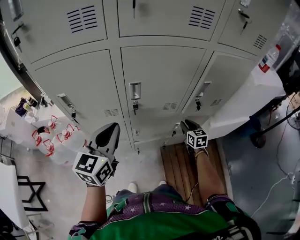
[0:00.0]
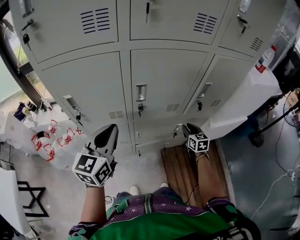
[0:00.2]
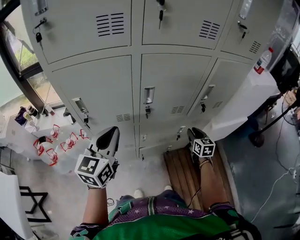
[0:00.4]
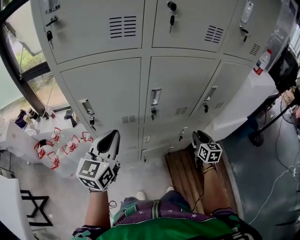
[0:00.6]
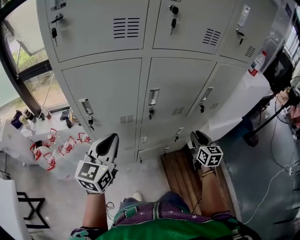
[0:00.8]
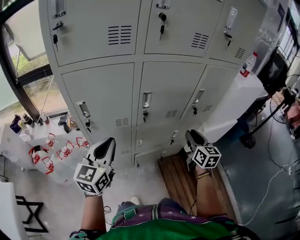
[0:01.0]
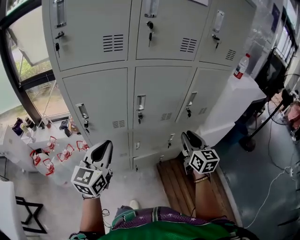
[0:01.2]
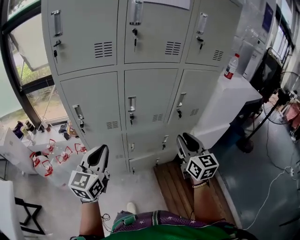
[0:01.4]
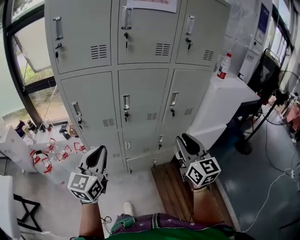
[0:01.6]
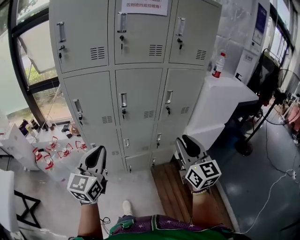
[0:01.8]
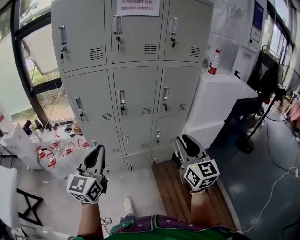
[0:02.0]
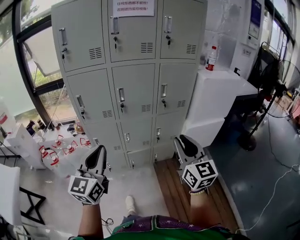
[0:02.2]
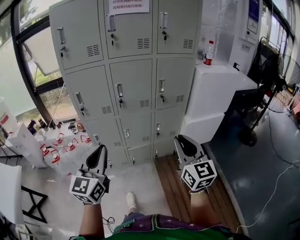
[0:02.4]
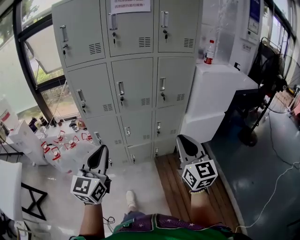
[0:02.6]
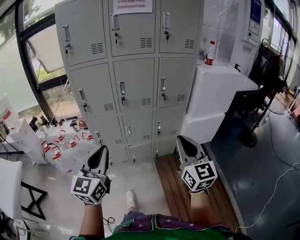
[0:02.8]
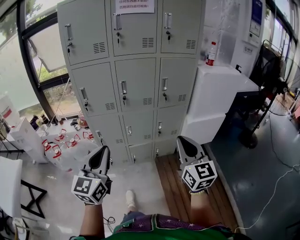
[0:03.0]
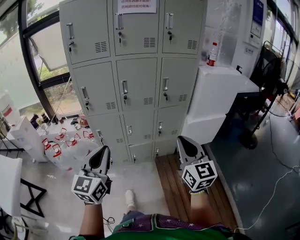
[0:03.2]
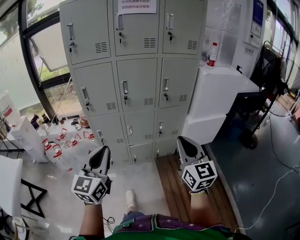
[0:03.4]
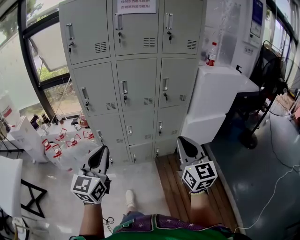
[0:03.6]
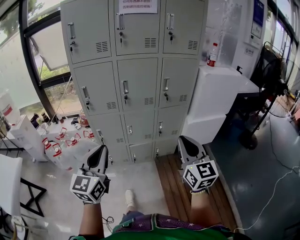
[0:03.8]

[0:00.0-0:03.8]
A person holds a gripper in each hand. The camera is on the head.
0:00.0 to 0:01.2: The right gripper moves upward and backward, approximately 30 cm, and rotates approximately 20 degrees. Meanwhile the left gripper moves backward and to the left, approximately 10 cm.
0:01.2 to 0:02.6: The right gripper is displaced backward by some 30 cm; the left gripper shifts some 35 cm backward and to the right.
0:02.6 to 0:03.8: The grippers stay close to where they were, moving slightly.

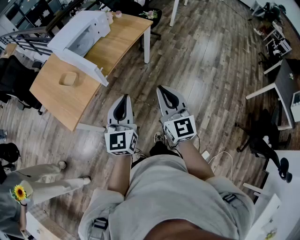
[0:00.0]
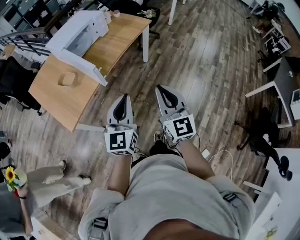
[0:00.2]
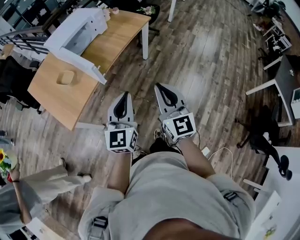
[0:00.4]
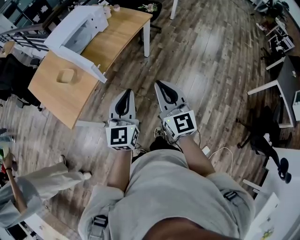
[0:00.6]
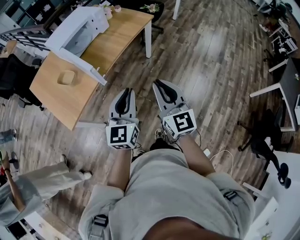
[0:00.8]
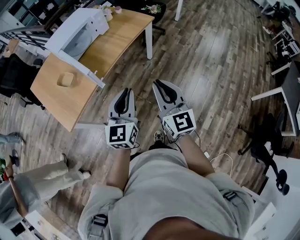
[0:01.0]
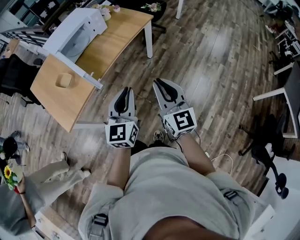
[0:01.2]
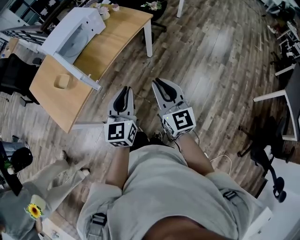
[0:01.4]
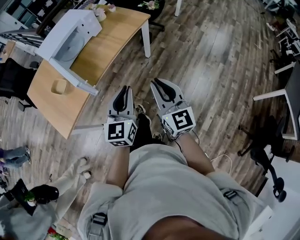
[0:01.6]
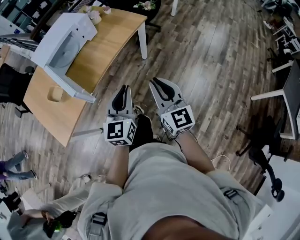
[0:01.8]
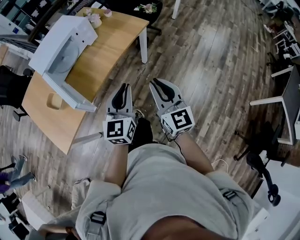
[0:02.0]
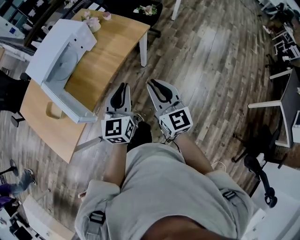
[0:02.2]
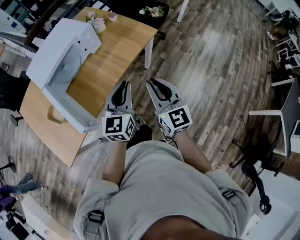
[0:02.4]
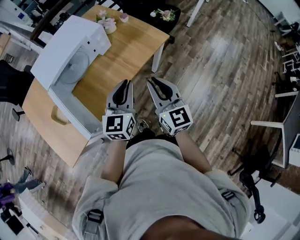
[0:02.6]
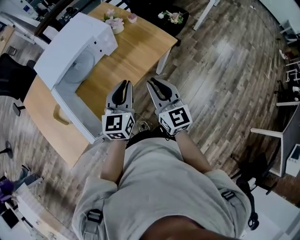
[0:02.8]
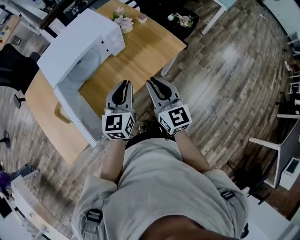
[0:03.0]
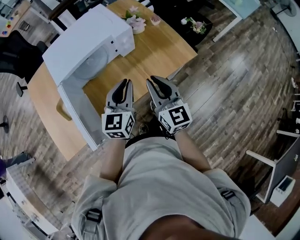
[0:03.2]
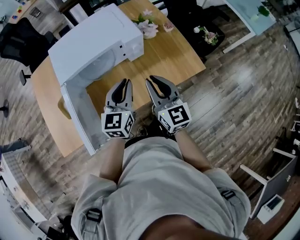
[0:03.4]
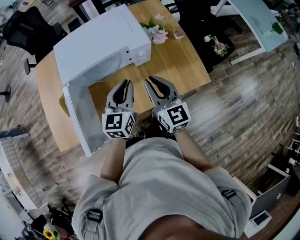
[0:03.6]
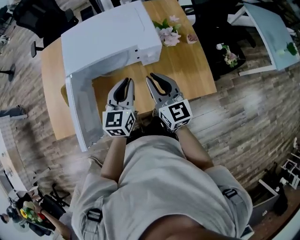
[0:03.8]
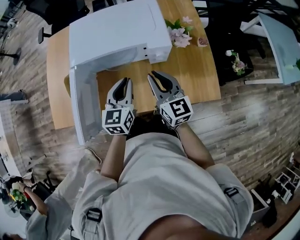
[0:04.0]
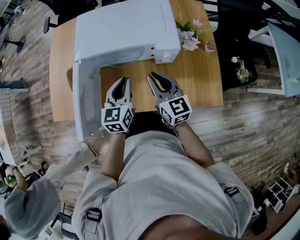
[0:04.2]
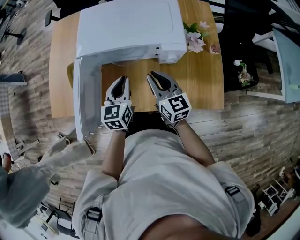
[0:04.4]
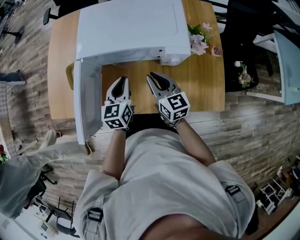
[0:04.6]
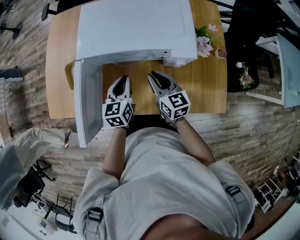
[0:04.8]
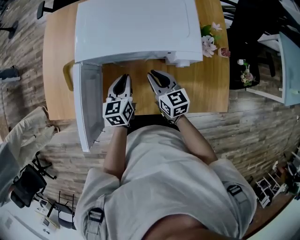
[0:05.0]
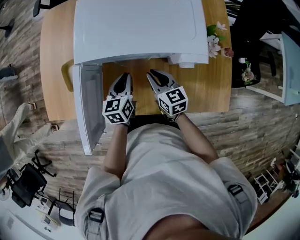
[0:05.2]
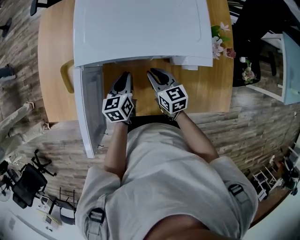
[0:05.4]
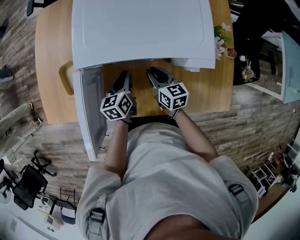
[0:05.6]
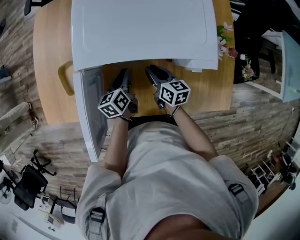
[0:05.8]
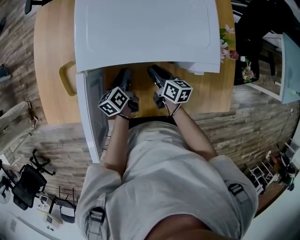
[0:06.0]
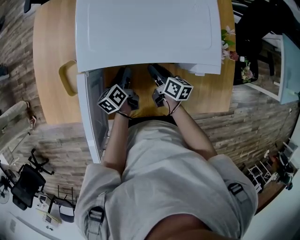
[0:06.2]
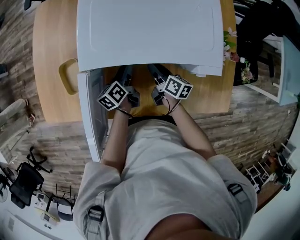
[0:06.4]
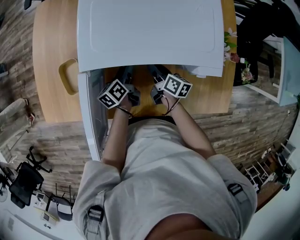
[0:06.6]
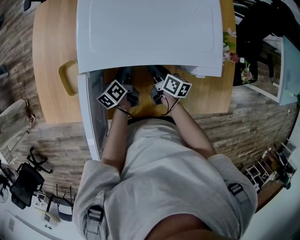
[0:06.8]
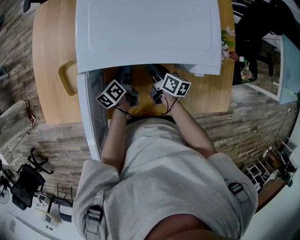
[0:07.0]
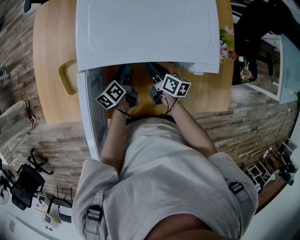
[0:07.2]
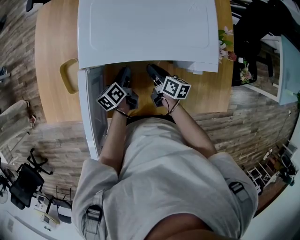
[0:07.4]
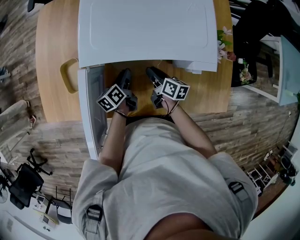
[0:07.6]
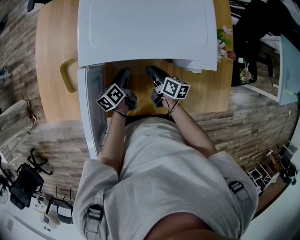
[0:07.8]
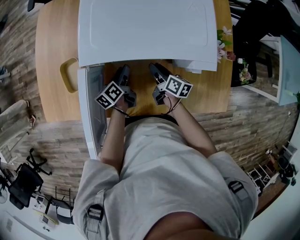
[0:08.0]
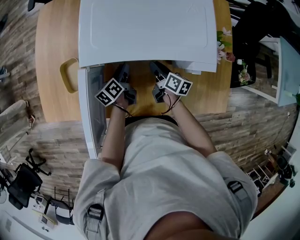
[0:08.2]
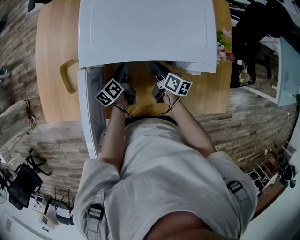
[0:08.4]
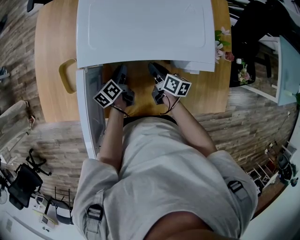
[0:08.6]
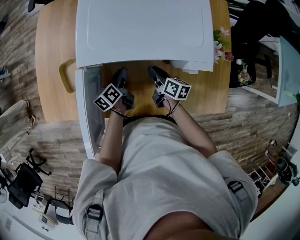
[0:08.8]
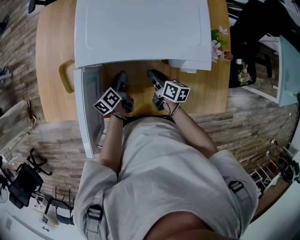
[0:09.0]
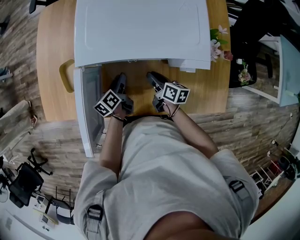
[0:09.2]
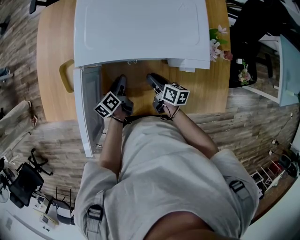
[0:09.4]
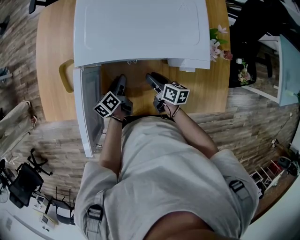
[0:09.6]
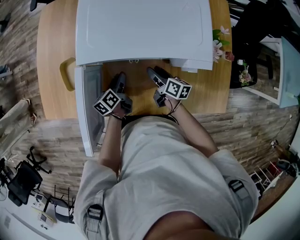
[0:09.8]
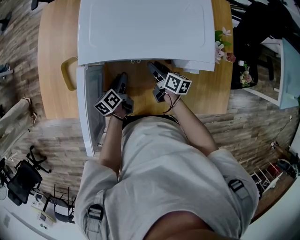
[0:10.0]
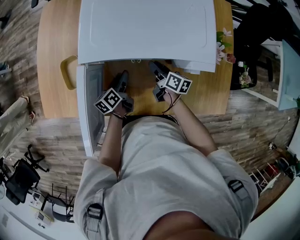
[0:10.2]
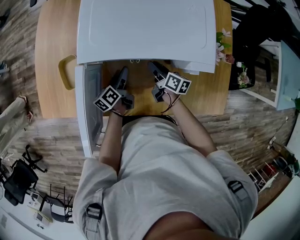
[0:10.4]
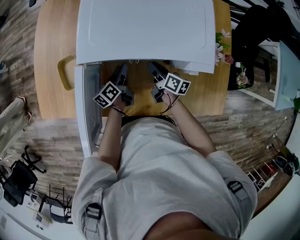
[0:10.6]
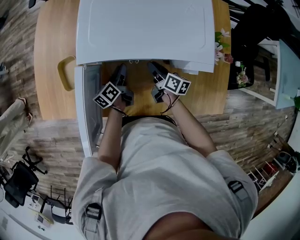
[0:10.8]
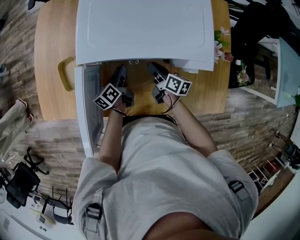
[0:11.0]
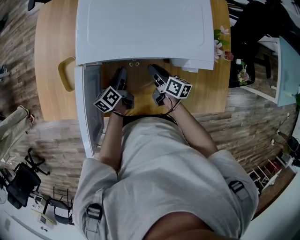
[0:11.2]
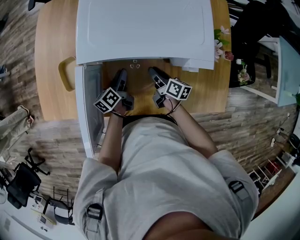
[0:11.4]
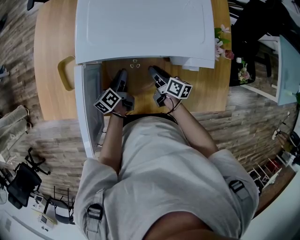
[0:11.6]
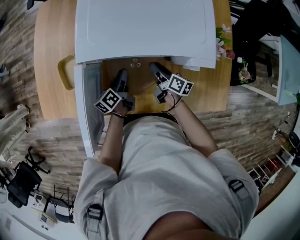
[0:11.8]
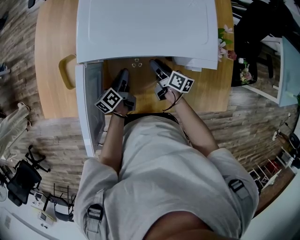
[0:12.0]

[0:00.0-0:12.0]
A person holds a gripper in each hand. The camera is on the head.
0:00.0 to 0:01.6: The two grippers go approximately 15 cm forward and to the right.
0:01.6 to 0:03.0: The grippers both shift forward by roughly 35 cm.
0:03.0 to 0:04.4: The right gripper shifts by roughly 25 cm, and swivels about 50 degrees. Meanwhile the left gripper ends up approximately 20 cm from where it was, and turns by roughly 50 degrees.
0:04.4 to 0:06.0: Both grippers travel together downward and forward, some 20 cm. The right gripper changes its angle by approximately 40 degrees. The left gripper changes its angle by roughly 40 degrees.
0:06.0 to 0:09.0: There are only small adjustments of the grippers.
0:09.0 to 0:10.4: The right gripper opens and closes again, while the left gripper opens.
0:10.4 to 0:12.0: The left gripper closes its fingers.

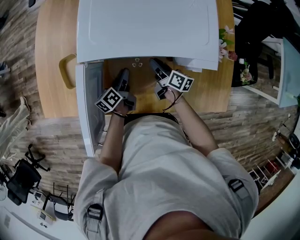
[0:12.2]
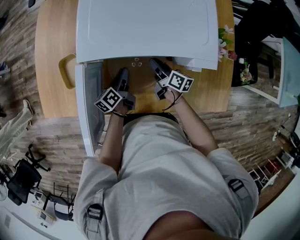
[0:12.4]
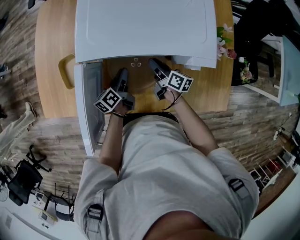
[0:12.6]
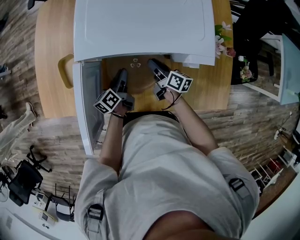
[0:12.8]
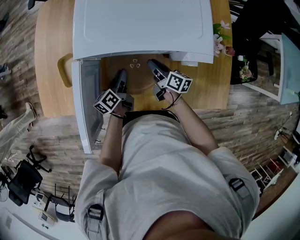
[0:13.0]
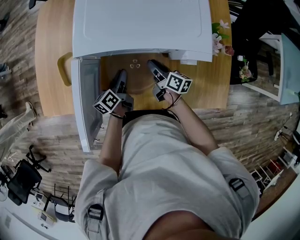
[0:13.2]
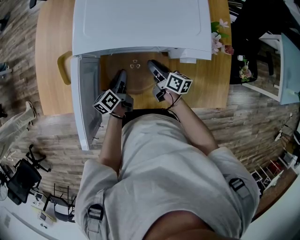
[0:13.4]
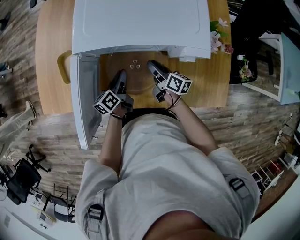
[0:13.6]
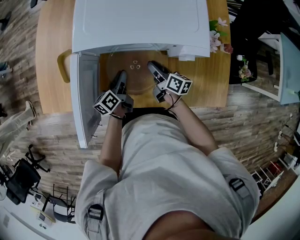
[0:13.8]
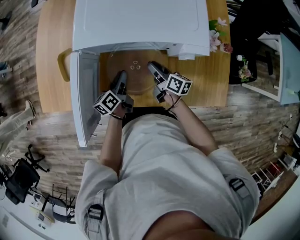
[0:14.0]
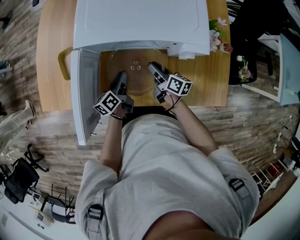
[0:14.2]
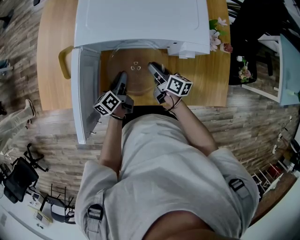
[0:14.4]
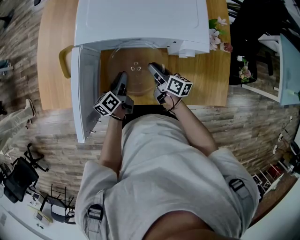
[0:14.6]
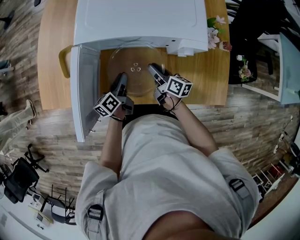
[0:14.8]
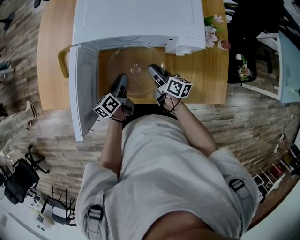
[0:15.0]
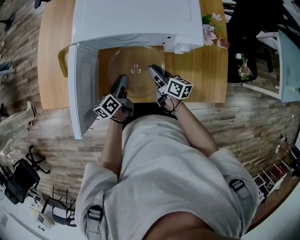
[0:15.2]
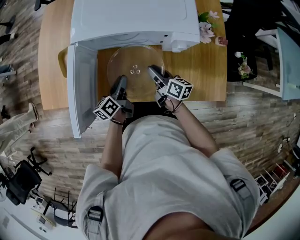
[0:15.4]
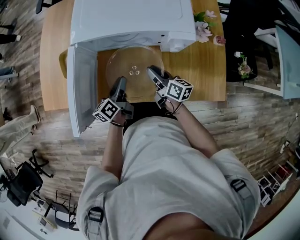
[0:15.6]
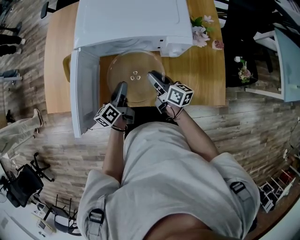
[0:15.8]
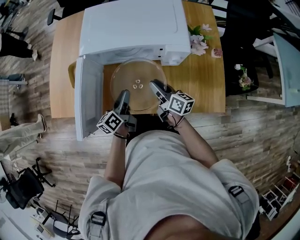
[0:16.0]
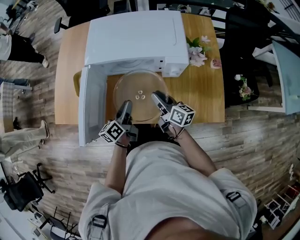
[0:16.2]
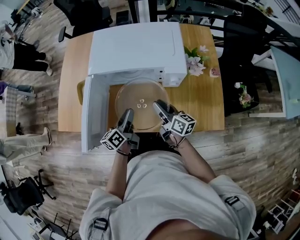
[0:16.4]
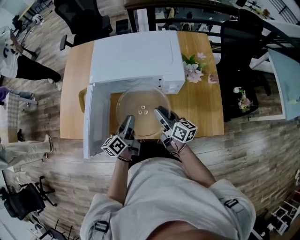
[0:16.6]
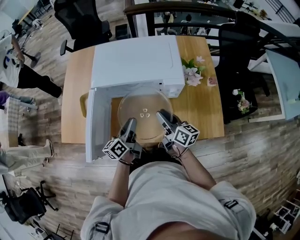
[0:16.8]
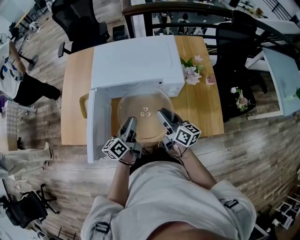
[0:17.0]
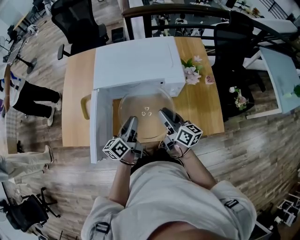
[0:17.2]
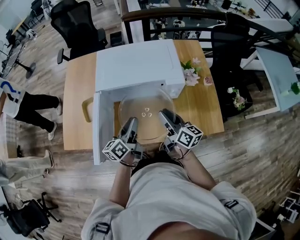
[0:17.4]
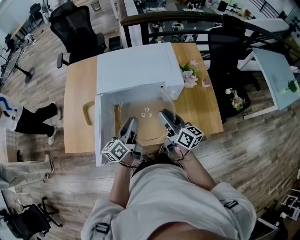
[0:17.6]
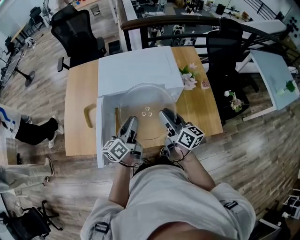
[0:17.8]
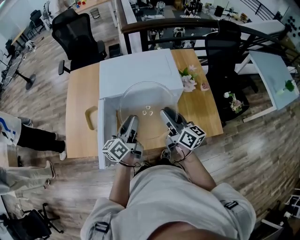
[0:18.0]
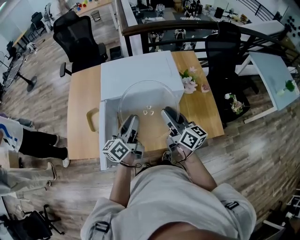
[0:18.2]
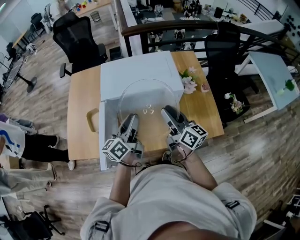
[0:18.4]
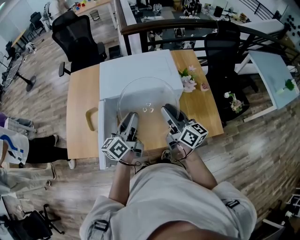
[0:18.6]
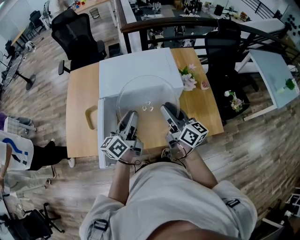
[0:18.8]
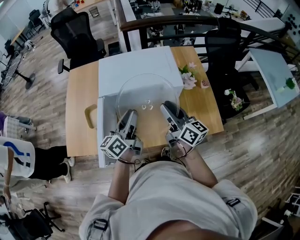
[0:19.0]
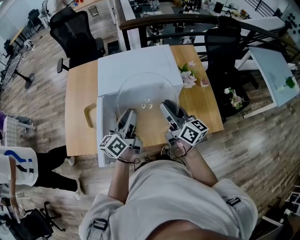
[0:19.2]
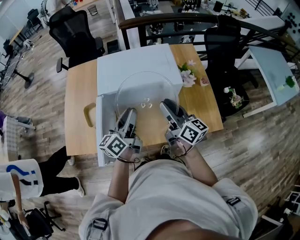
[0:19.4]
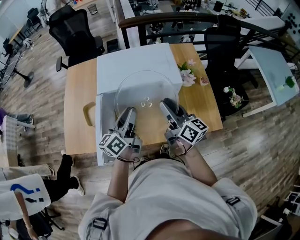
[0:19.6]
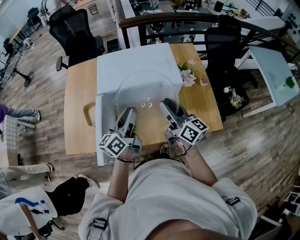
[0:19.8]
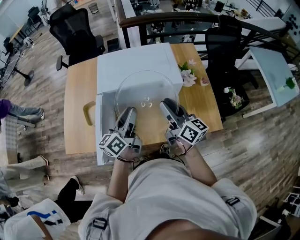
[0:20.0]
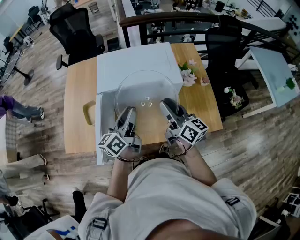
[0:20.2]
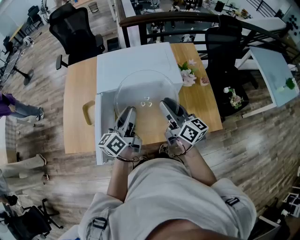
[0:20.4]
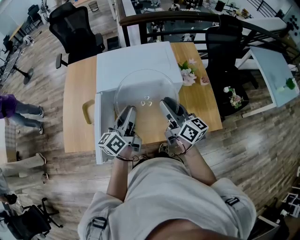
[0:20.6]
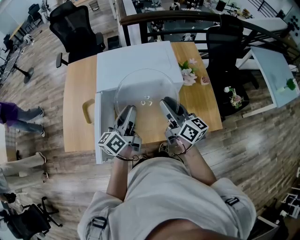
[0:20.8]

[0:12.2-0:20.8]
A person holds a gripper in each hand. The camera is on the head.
0:12.2 to 0:13.6: The grippers make only small movements.
0:13.6 to 0:15.0: The grippers move only a little.
0:15.0 to 0:16.6: Both grippers travel together upward, about 10 cm.
0:16.6 to 0:18.0: The grippers both shift upward by approximately 15 cm.
0:18.0 to 0:19.4: The grippers make only small movements.
0:19.4 to 0:20.8: Both grippers stay put.
